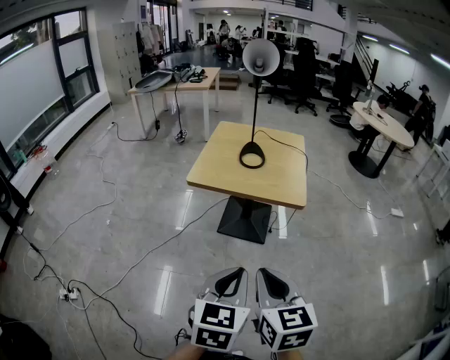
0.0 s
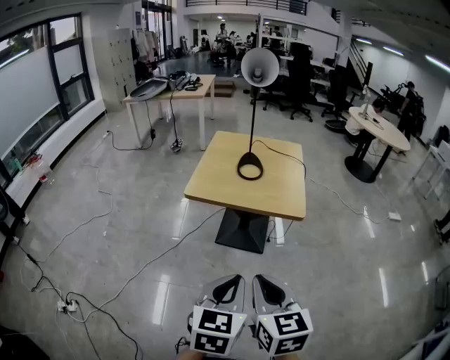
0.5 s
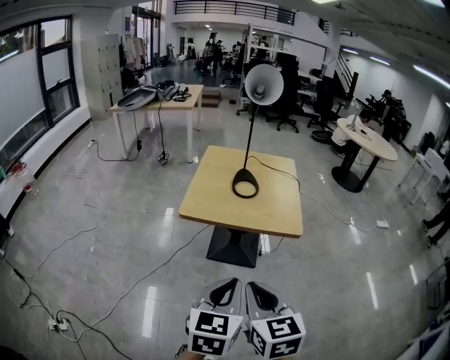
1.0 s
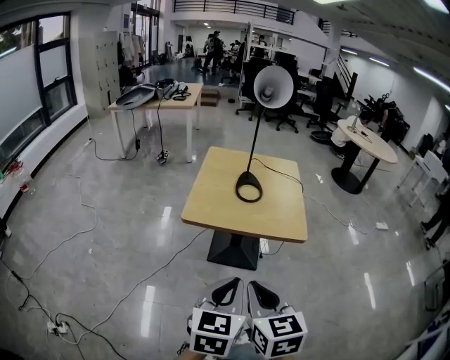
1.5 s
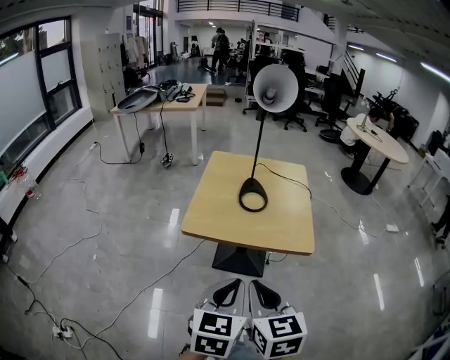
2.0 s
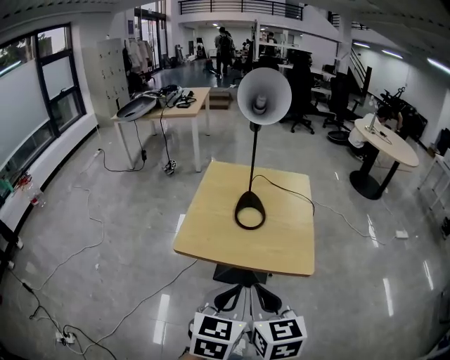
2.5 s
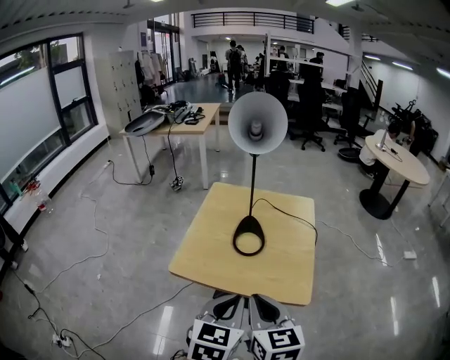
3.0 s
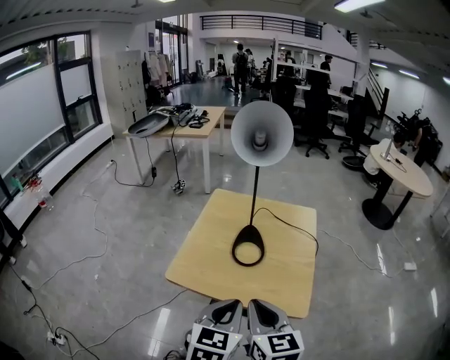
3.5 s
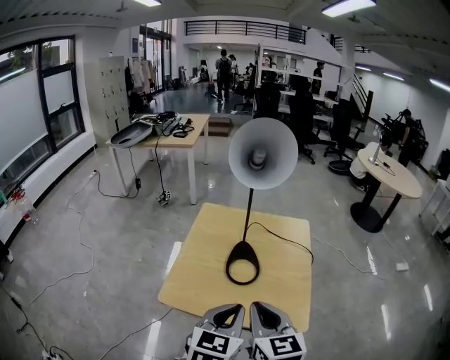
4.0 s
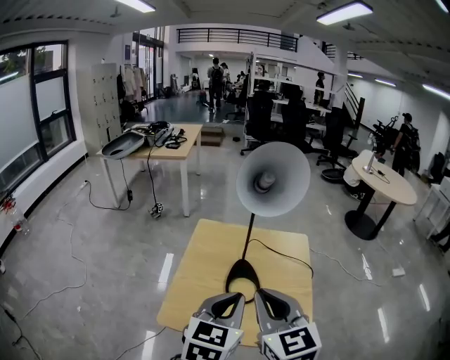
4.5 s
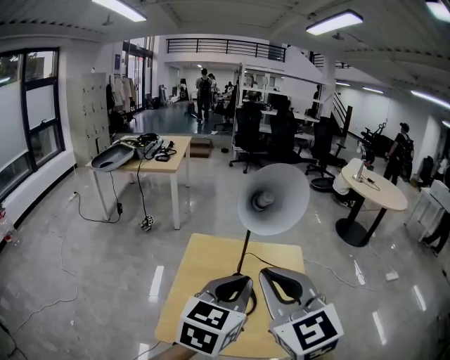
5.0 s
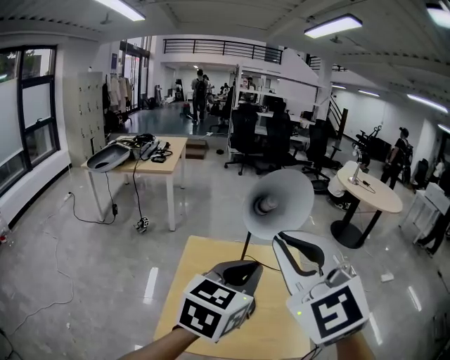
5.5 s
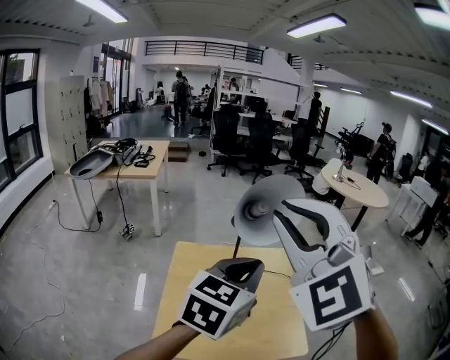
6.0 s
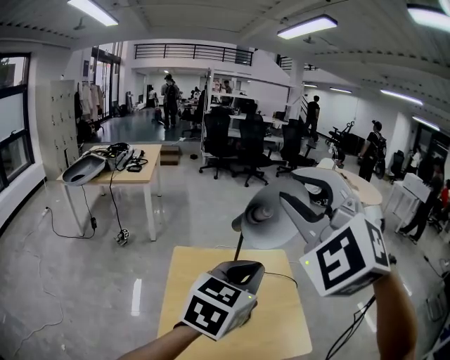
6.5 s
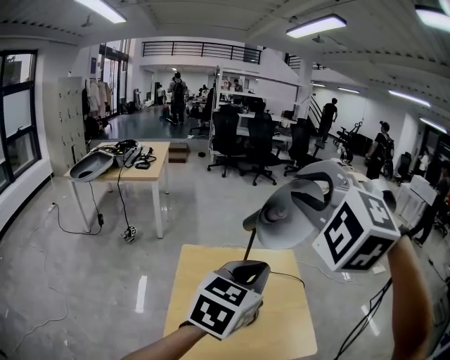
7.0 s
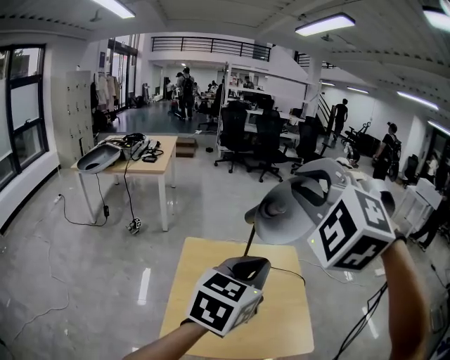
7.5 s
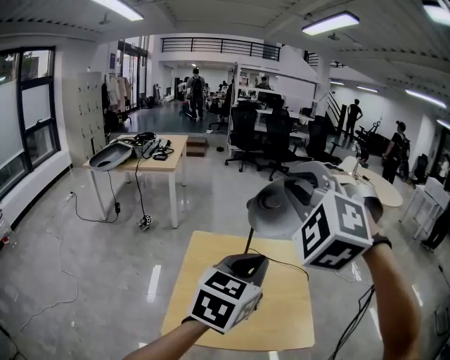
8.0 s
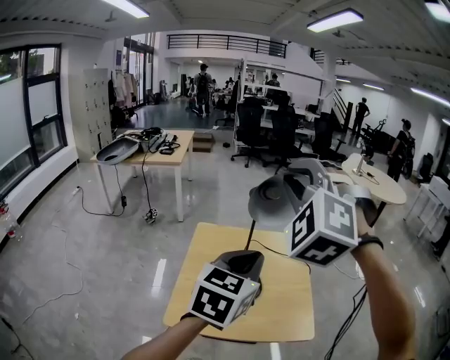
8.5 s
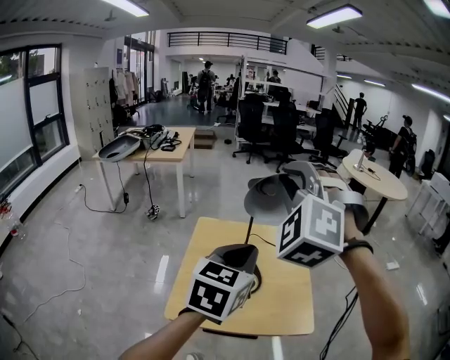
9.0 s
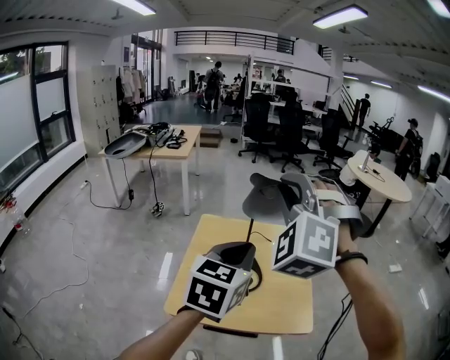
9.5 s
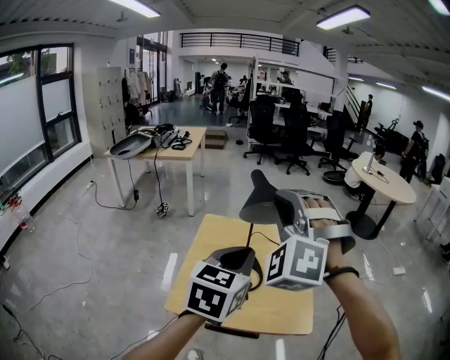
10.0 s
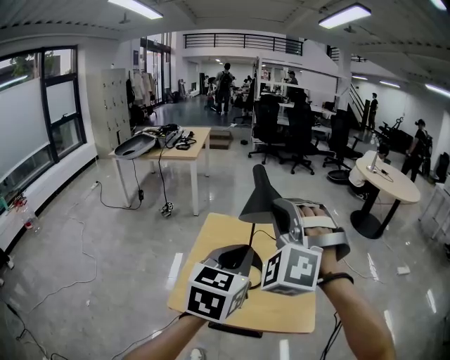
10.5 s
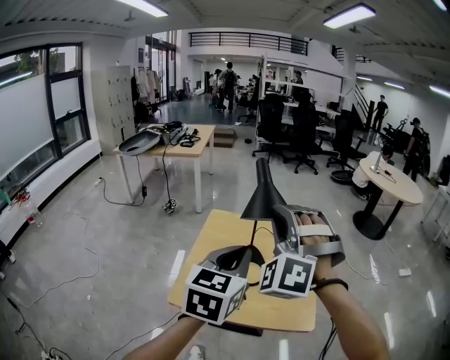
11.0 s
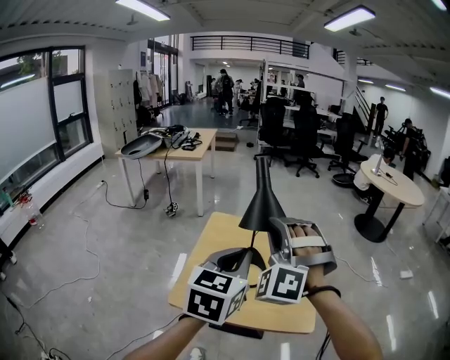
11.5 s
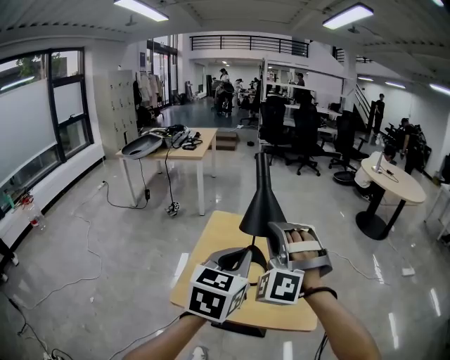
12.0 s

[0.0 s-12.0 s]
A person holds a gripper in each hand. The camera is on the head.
0.0 to 4.0 s: The grippers move only a little.
4.0 to 6.0 s: The left gripper is displaced upward, forward and to the right by roughly 20 cm, and rotates about 30 degrees, while the right gripper travels upward by approximately 30 cm, and rotates around the line of its fingers by some 60 degrees, counterclockwise from behind.
6.0 to 8.0 s: The right gripper shifts approximately 10 cm forward, and turns by roughly 30 degrees.
8.0 to 10.0 s: The left gripper is displaced to the left by some 10 cm, while the right gripper goes about 10 cm downward and to the left.
10.0 to 12.0 s: The right gripper travels downward by approximately 10 cm.

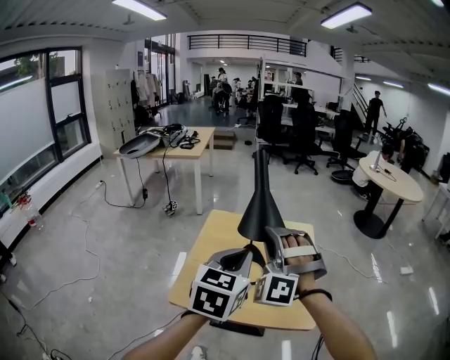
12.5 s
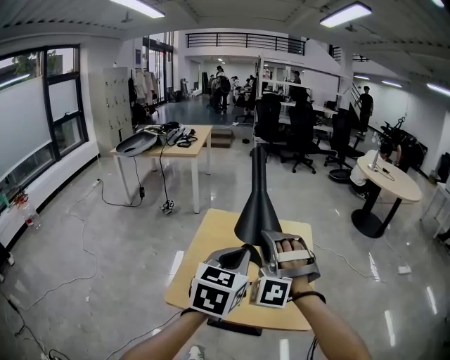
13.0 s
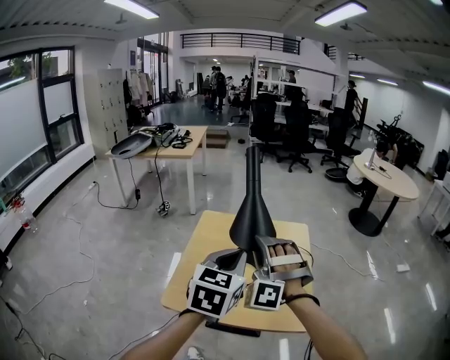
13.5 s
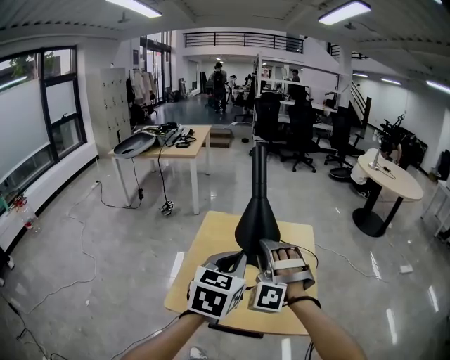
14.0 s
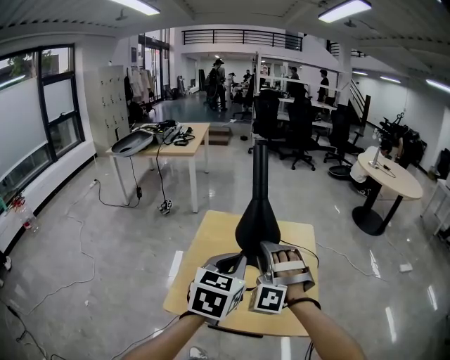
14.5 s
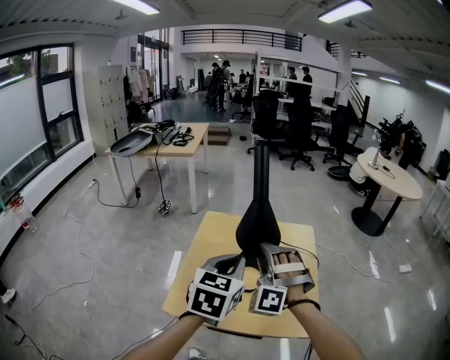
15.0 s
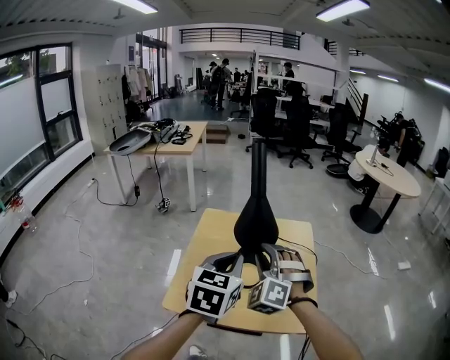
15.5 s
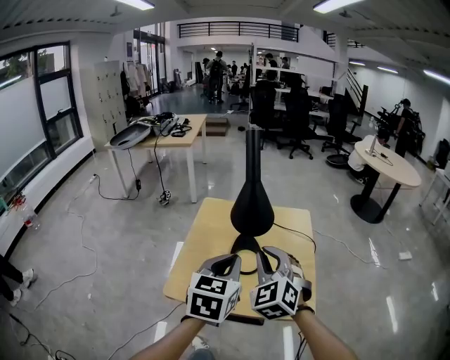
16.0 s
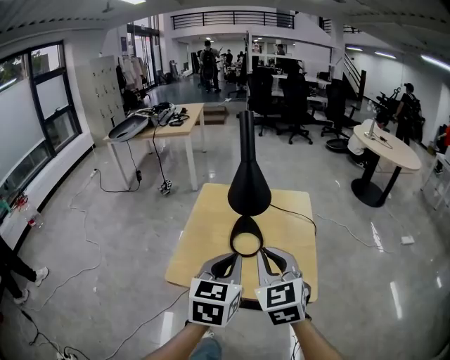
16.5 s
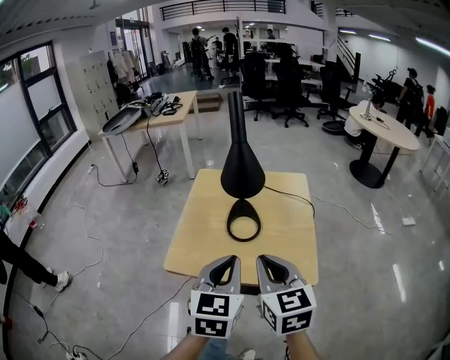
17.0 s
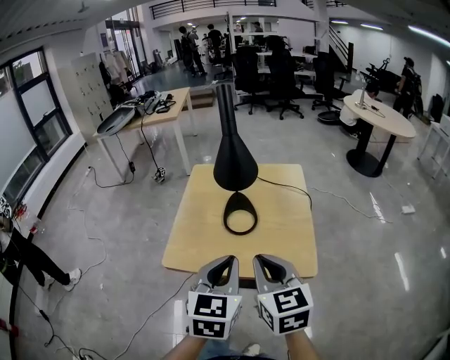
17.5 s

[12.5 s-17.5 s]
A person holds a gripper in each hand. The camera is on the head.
12.5 to 15.0 s: The right gripper shifts about 10 cm downward, and opens its fingers.
15.0 to 17.5 s: The right gripper heads backward, covering approximately 15 cm, rotates around the line of its fingers by roughly 90 degrees, clockwise from behind, and closes up. Meanwhile the left gripper shifts roughly 10 cm backward.

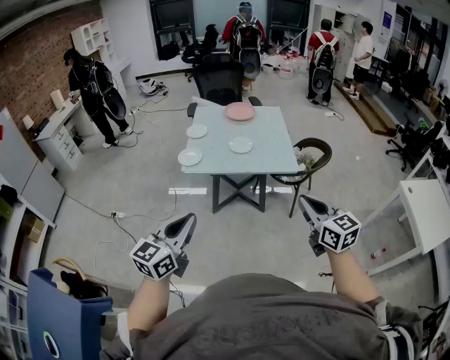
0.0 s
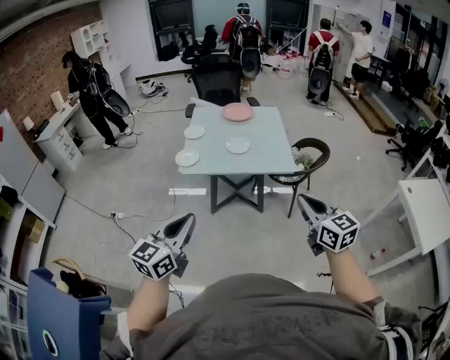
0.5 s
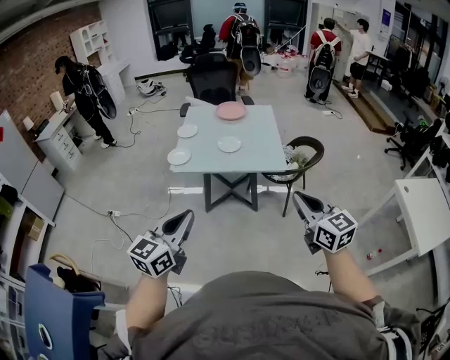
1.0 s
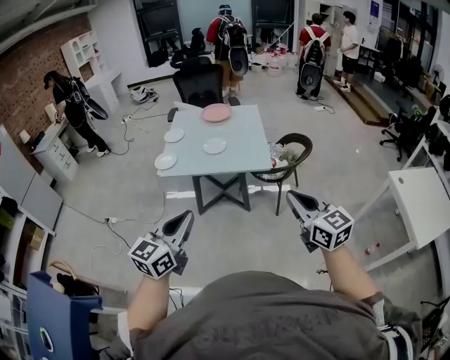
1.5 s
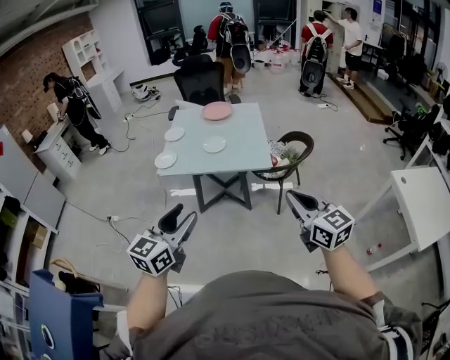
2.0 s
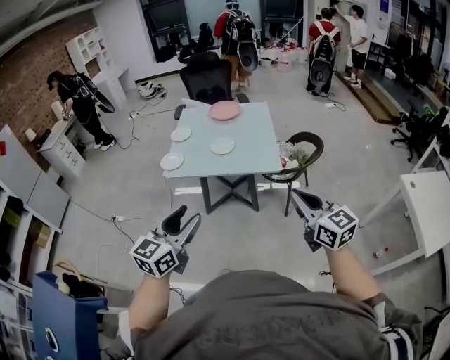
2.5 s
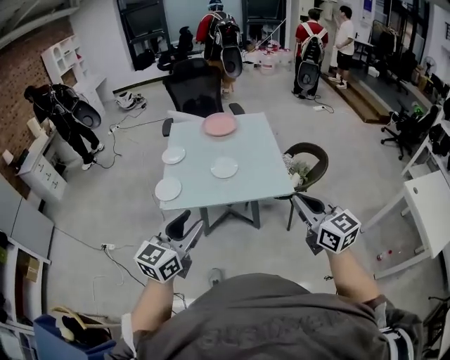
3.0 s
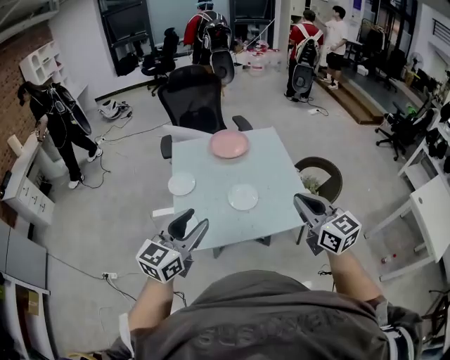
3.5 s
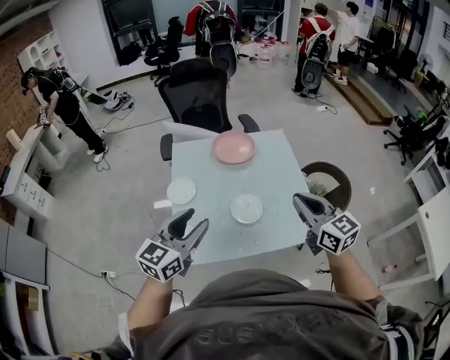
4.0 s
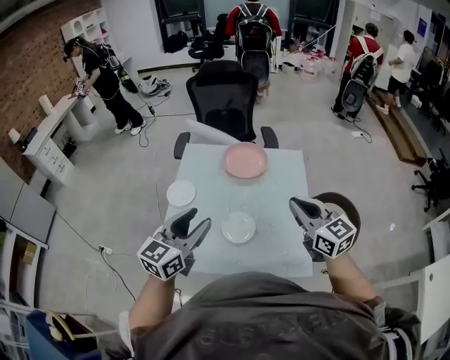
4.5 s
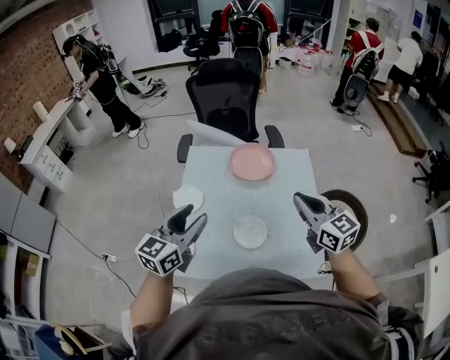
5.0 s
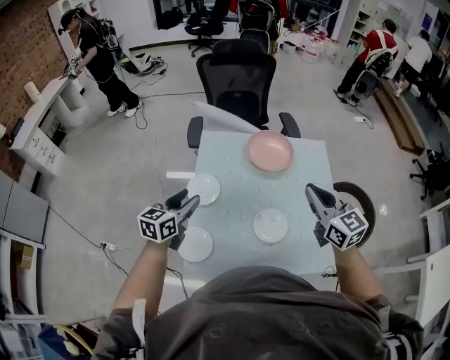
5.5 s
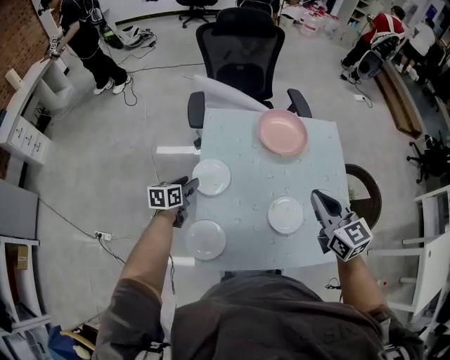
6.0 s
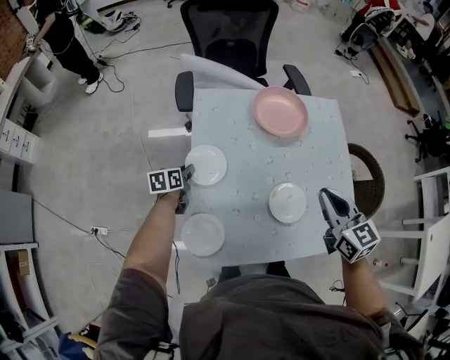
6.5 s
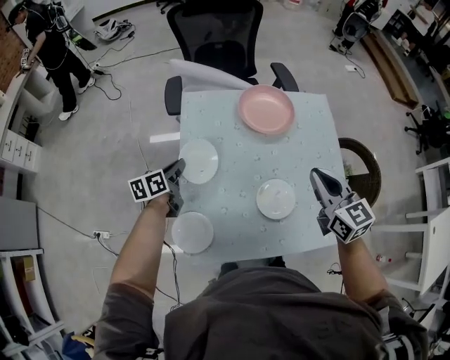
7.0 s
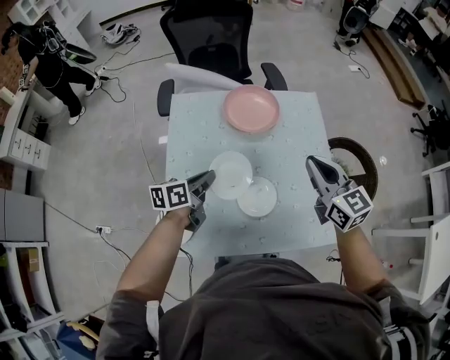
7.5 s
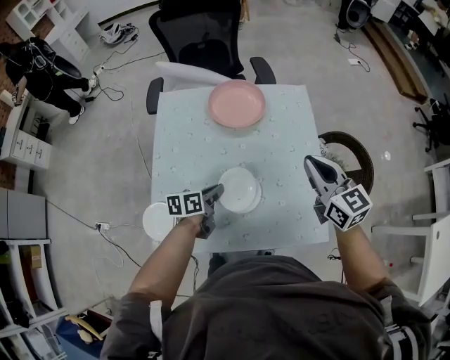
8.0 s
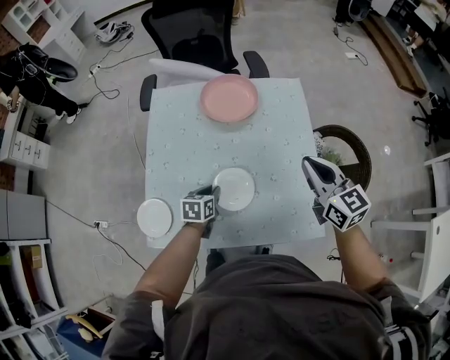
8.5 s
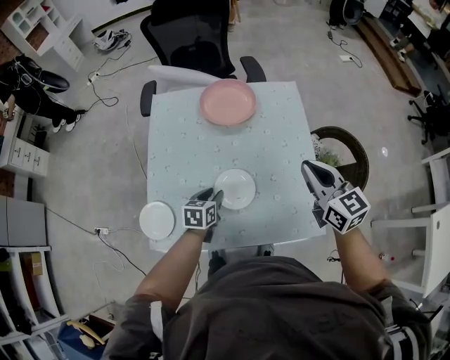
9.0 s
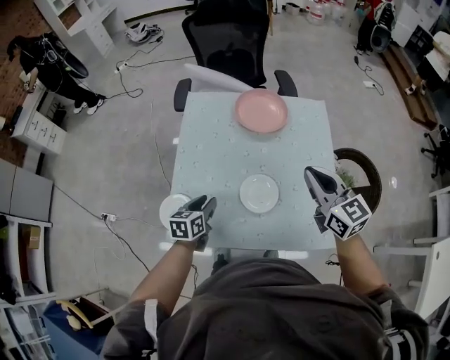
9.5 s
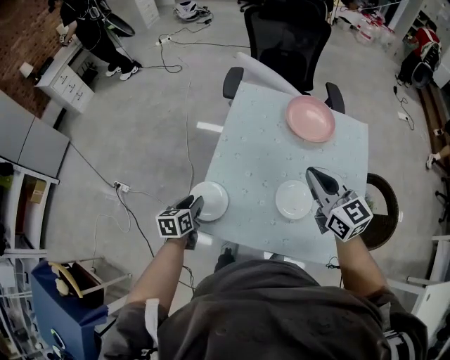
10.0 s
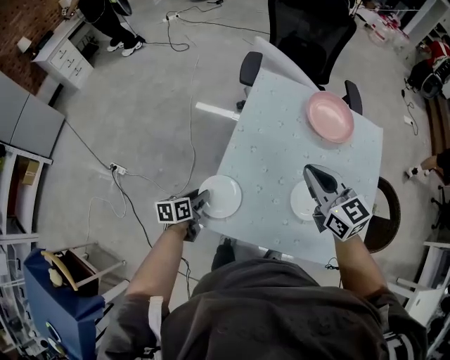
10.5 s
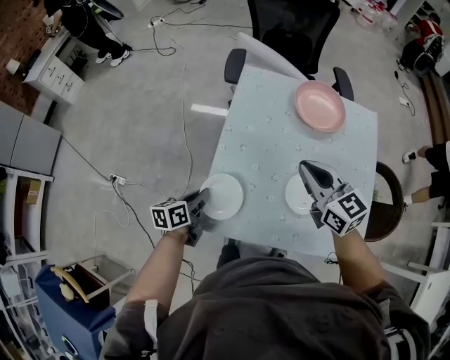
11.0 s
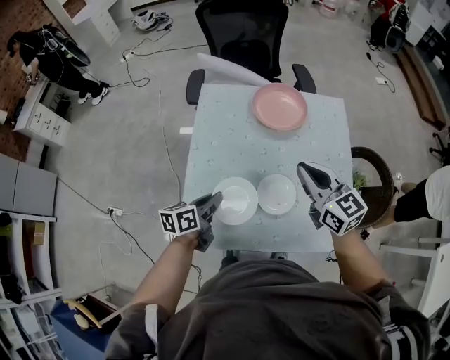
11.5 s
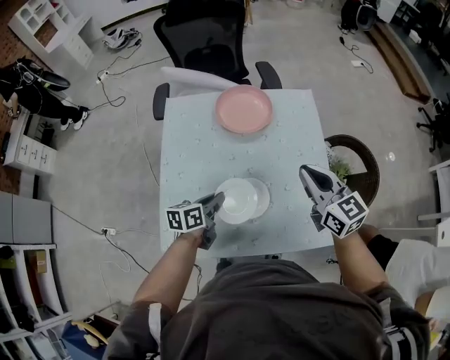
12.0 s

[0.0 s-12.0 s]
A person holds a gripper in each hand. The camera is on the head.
0.0 to 2.0 s: Both grippers move to the right, about 15 cm. The left gripper opens up.
2.0 to 4.0 s: The two grippers travel together, forward and to the left, roughly 60 cm.
4.0 to 6.0 s: The right gripper goes about 25 cm forward, to the left and downward, while the left gripper heads downward, forward and to the left, covering roughly 50 cm, and swivels about 40 degrees.
6.0 to 8.0 s: The right gripper travels to the right by roughly 20 cm. The left gripper goes about 35 cm to the right, and closes up.
8.0 to 10.0 s: The left gripper ends up approximately 30 cm from where it was, rotates about 30 degrees, and opens; the right gripper changes place by some 20 cm.
10.0 to 12.0 s: The right gripper shifts by roughly 20 cm. The left gripper moves some 5 cm downward and comes back, changes its angle by some 30 degrees, and closes.
